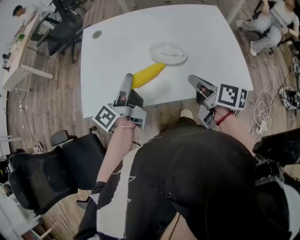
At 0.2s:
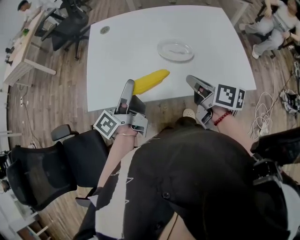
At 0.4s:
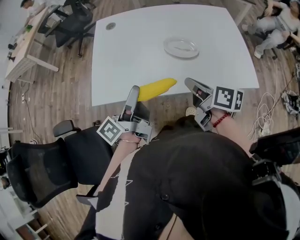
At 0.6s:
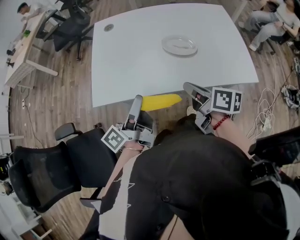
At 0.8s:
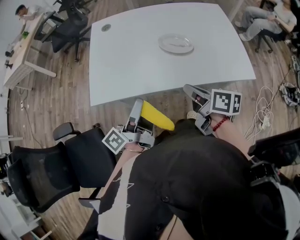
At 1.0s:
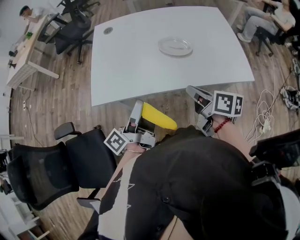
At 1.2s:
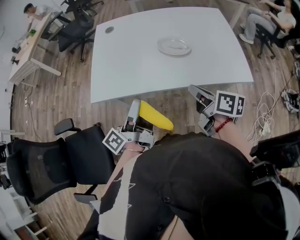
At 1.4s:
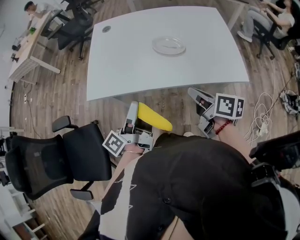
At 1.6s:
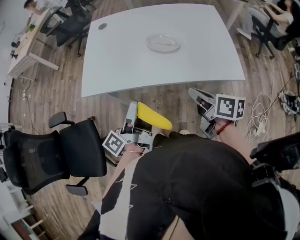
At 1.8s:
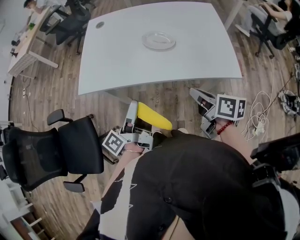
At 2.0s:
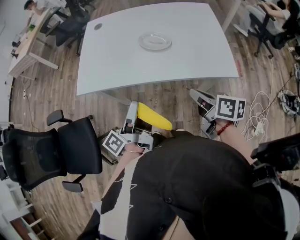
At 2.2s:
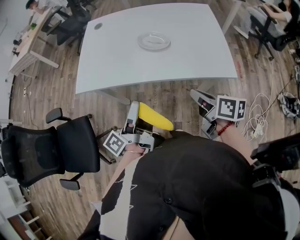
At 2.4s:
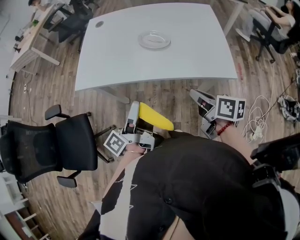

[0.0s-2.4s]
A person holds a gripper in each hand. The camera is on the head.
0.0s to 1.2s: The right gripper moves backward and to the left, about 10 cm. The left gripper goes some 15 cm backward.
1.2s to 2.4s: The two grippers go some 10 cm to the right and backward.

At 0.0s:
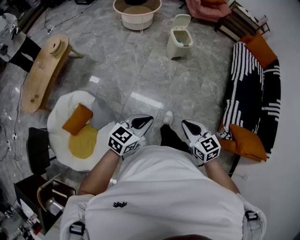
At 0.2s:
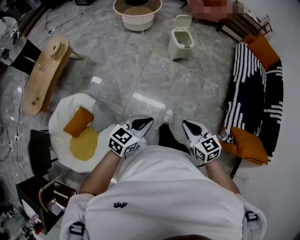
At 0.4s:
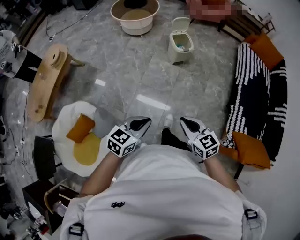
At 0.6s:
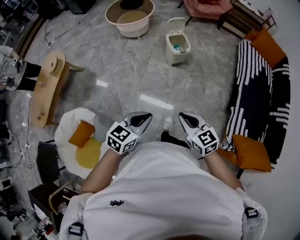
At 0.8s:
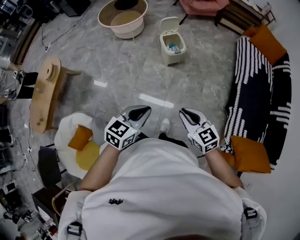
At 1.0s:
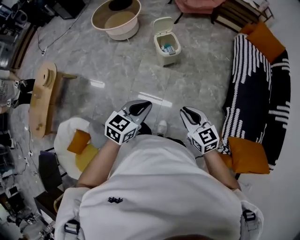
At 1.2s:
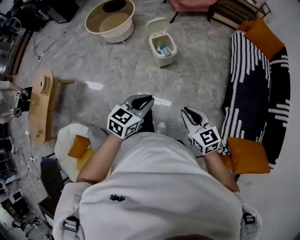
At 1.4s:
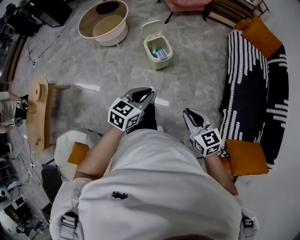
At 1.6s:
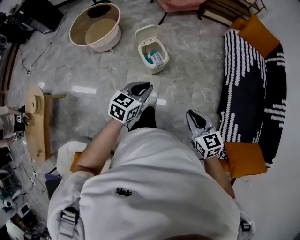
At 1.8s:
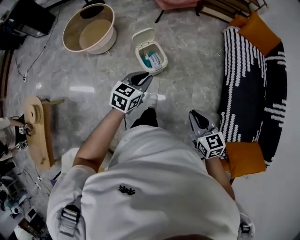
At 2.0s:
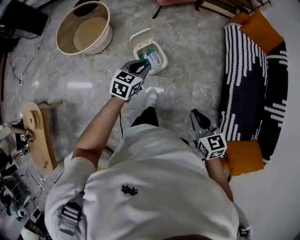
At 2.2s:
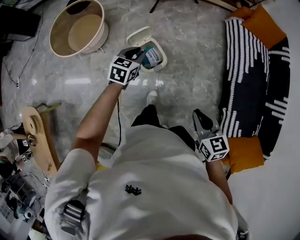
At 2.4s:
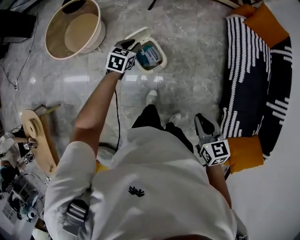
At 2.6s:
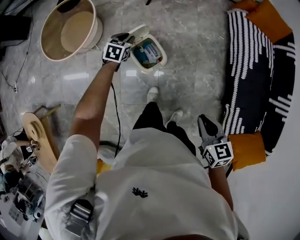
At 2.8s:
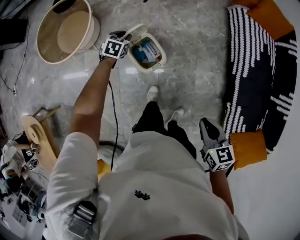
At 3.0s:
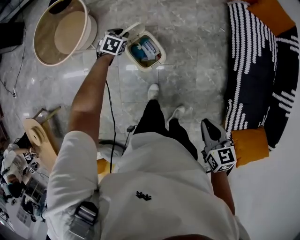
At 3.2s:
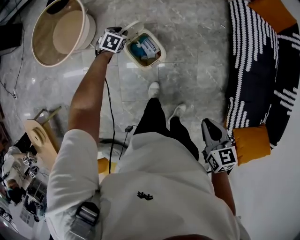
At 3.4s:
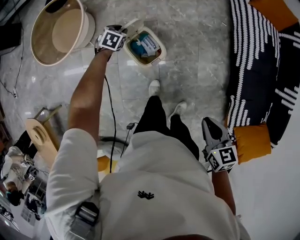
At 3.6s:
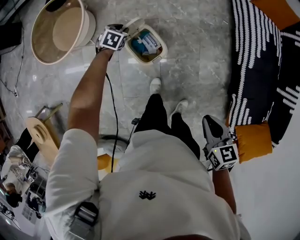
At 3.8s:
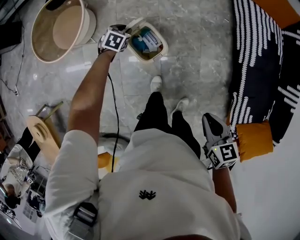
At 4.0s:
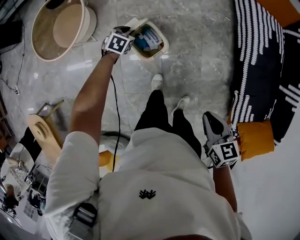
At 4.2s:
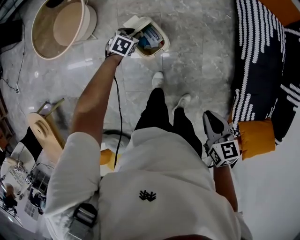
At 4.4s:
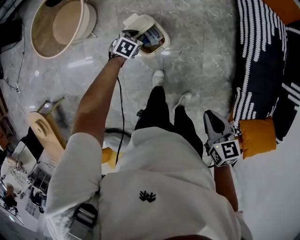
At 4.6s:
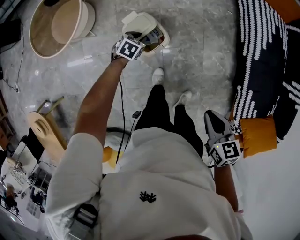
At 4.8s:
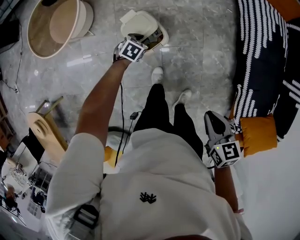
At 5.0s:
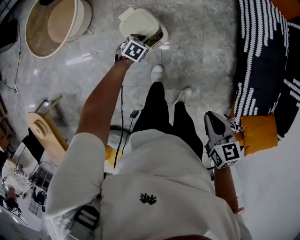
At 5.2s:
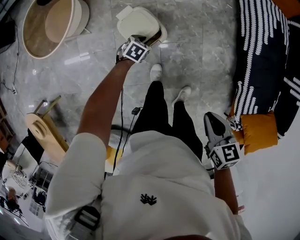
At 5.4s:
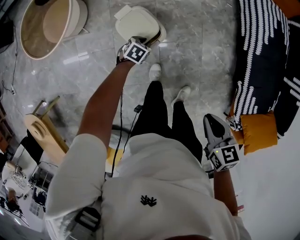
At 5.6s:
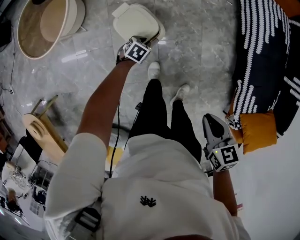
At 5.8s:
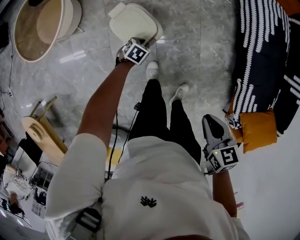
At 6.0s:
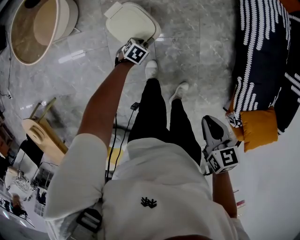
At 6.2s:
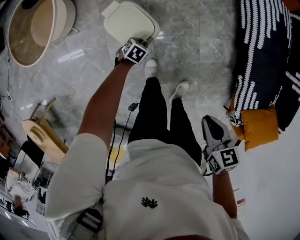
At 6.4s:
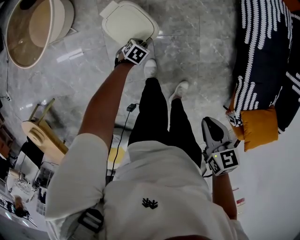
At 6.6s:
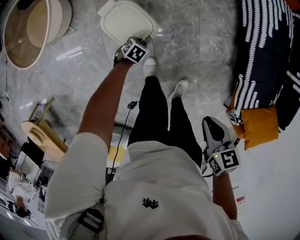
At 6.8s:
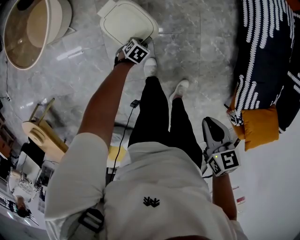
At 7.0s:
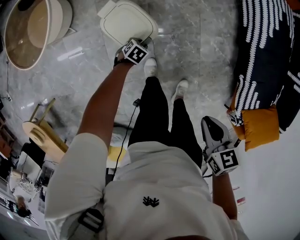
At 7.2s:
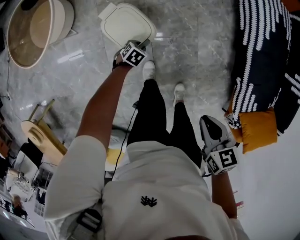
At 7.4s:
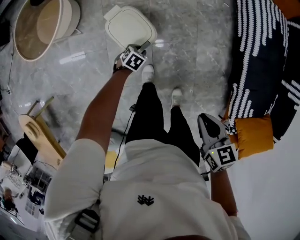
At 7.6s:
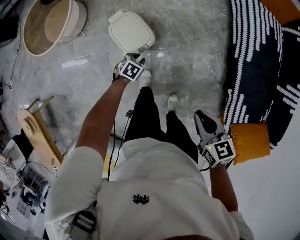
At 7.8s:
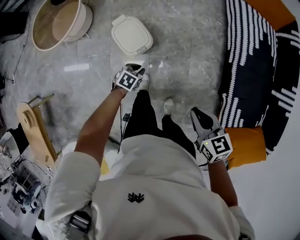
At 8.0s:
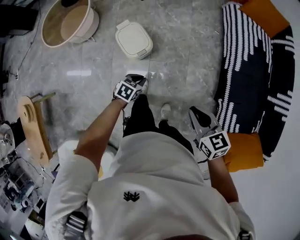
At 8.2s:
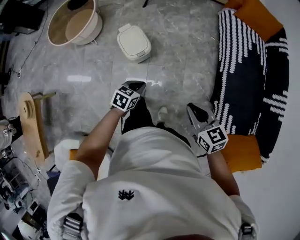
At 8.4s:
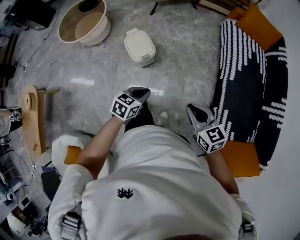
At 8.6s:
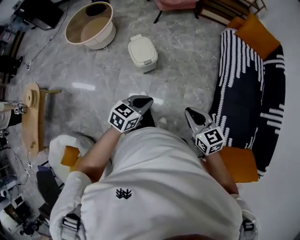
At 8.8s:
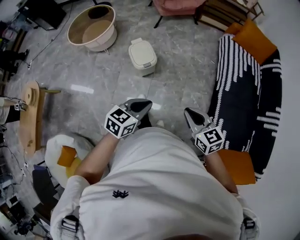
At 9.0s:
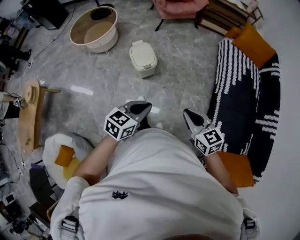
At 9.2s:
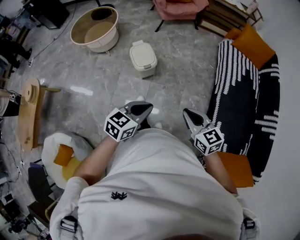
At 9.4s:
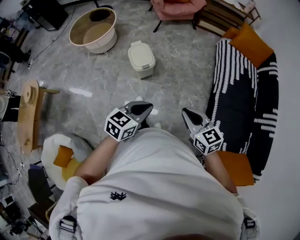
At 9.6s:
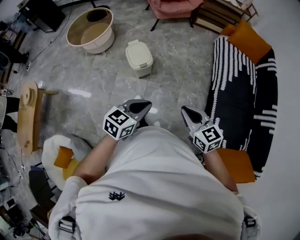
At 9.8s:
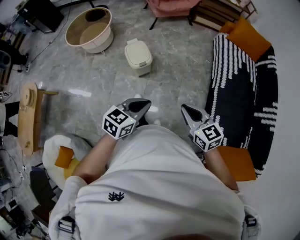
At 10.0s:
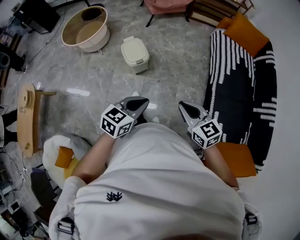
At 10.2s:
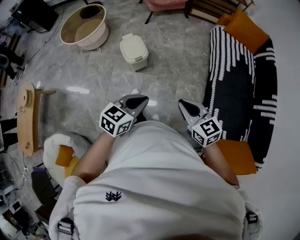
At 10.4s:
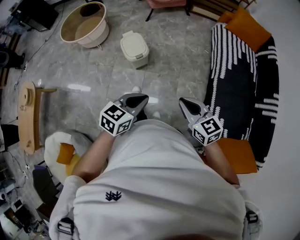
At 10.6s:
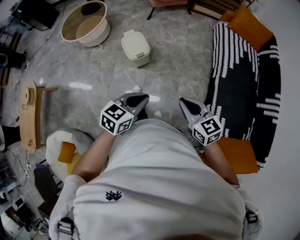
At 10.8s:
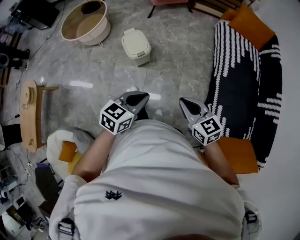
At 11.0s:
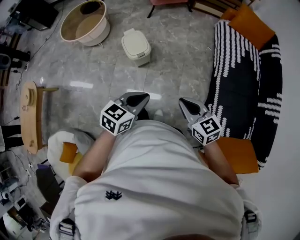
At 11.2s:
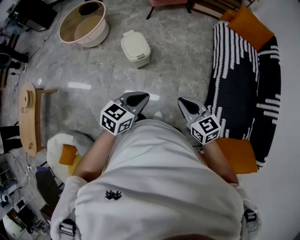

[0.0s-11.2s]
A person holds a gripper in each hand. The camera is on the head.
0.0s to 1.6s: The pair of grippers is taken forward, roughly 50 cm.
1.6s to 3.2s: The left gripper travels forward and downward by about 60 cm, and angles its fingers downward, by about 30 degrees, while the right gripper is displaced forward by roughly 20 cm, and changes its angle by some 30 degrees.
3.2s to 4.8s: The left gripper moves backward, to the right and downward, some 15 cm.
4.8s to 6.4s: The right gripper moves downward, roughly 5 cm, while the left gripper is displaced downward and to the right by roughly 15 cm.
6.4s to 8.0s: The left gripper is displaced upward, backward and to the right by about 30 cm, while the right gripper is displaced upward and to the right by approximately 15 cm, and rotates roughly 30 degrees.
8.0s to 9.6s: The right gripper heads backward and upward, covering roughly 15 cm, while the left gripper shifts approximately 35 cm upward and backward, and turns by approximately 30 degrees.
9.6s to 11.2s: The grippers move only a little.

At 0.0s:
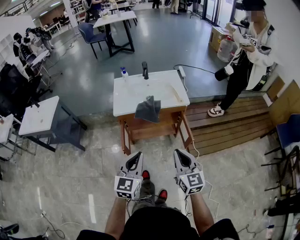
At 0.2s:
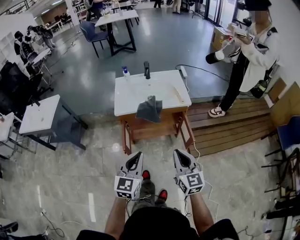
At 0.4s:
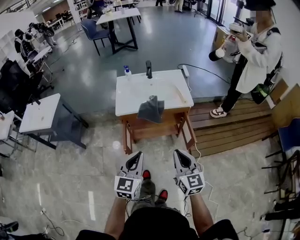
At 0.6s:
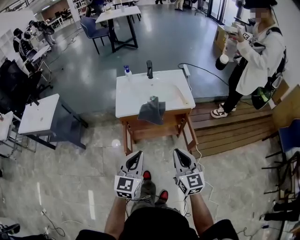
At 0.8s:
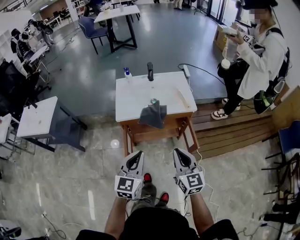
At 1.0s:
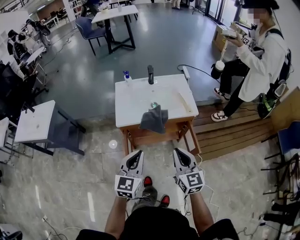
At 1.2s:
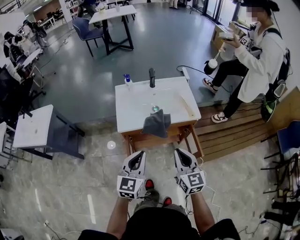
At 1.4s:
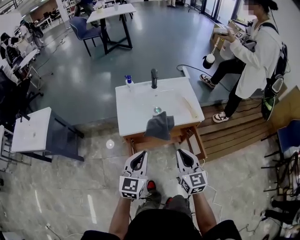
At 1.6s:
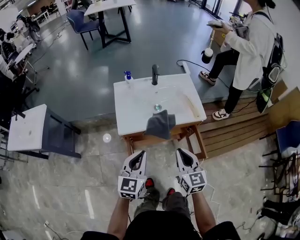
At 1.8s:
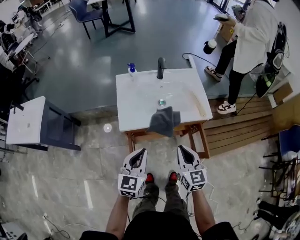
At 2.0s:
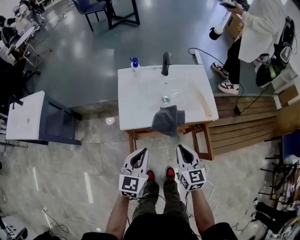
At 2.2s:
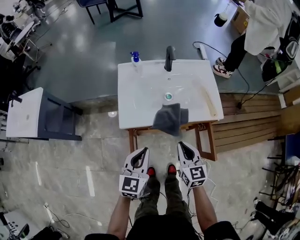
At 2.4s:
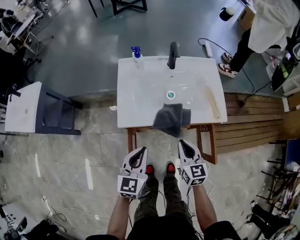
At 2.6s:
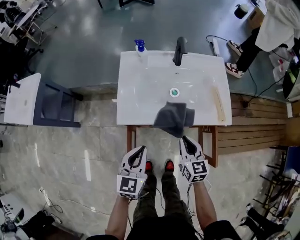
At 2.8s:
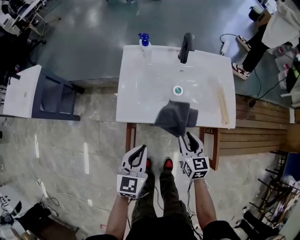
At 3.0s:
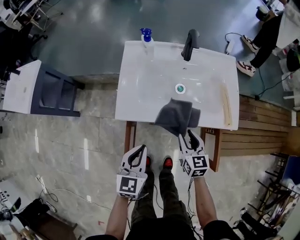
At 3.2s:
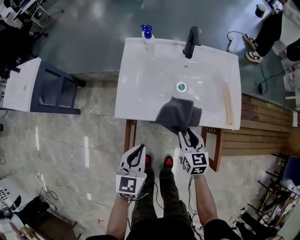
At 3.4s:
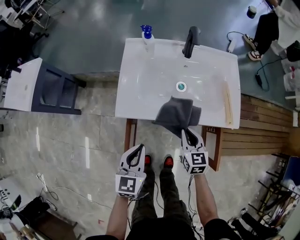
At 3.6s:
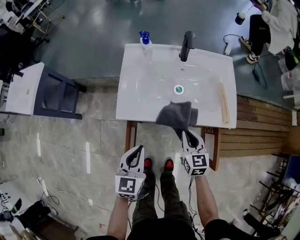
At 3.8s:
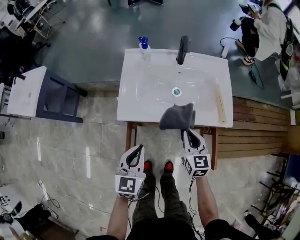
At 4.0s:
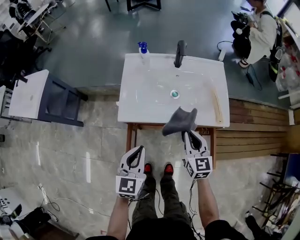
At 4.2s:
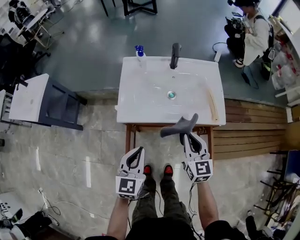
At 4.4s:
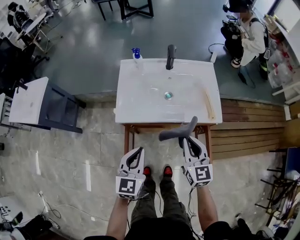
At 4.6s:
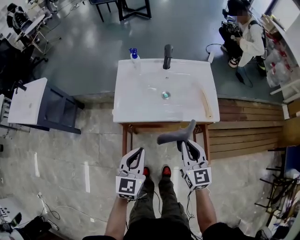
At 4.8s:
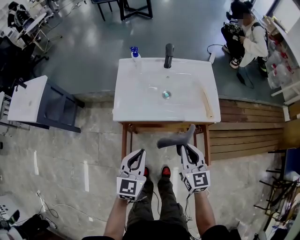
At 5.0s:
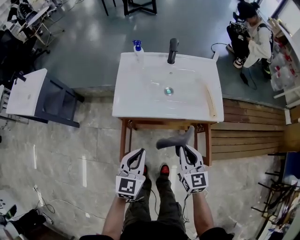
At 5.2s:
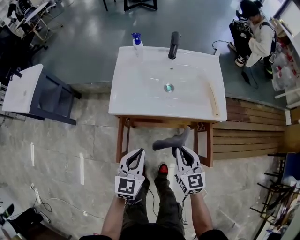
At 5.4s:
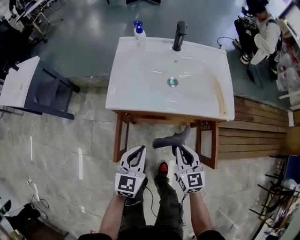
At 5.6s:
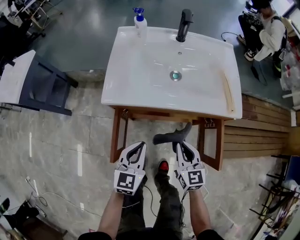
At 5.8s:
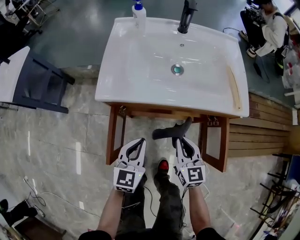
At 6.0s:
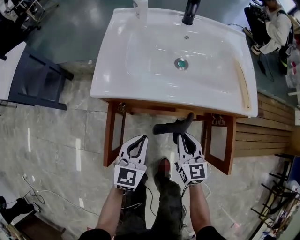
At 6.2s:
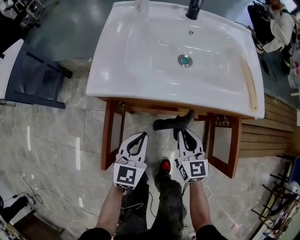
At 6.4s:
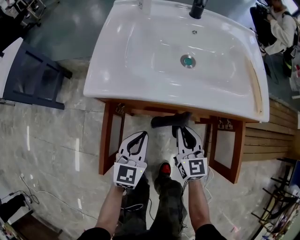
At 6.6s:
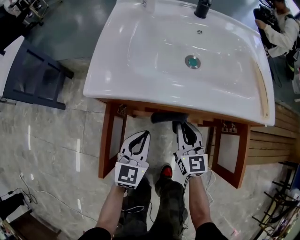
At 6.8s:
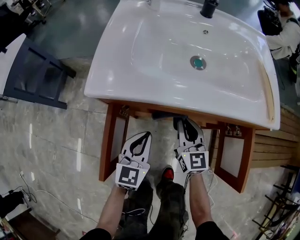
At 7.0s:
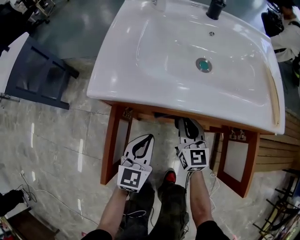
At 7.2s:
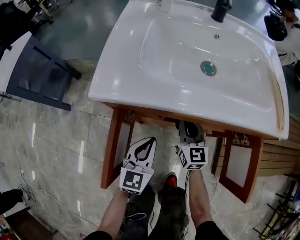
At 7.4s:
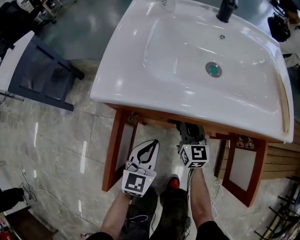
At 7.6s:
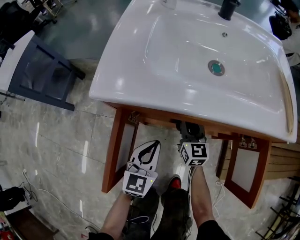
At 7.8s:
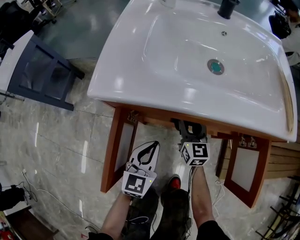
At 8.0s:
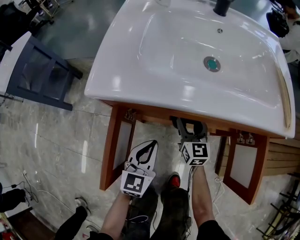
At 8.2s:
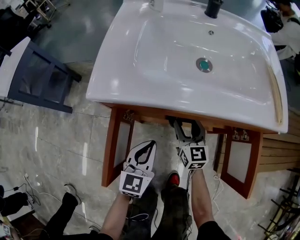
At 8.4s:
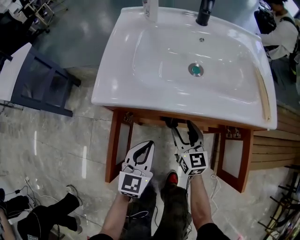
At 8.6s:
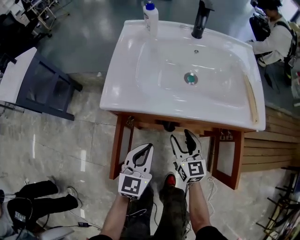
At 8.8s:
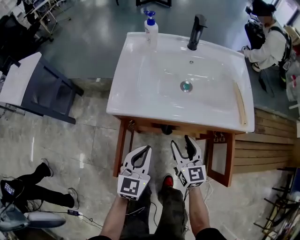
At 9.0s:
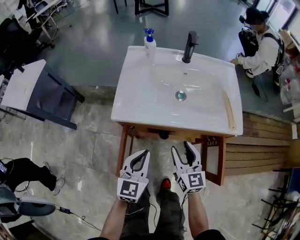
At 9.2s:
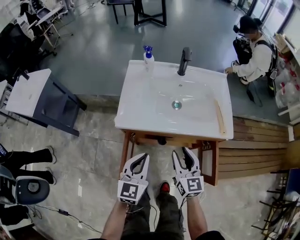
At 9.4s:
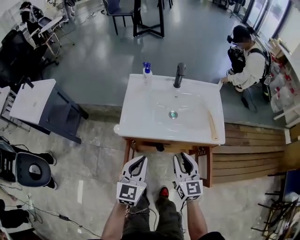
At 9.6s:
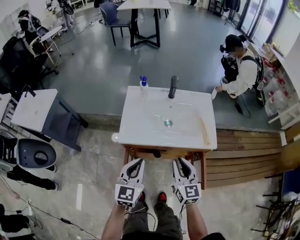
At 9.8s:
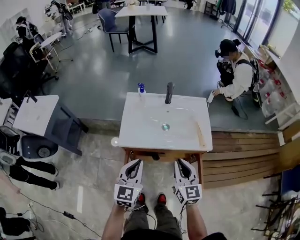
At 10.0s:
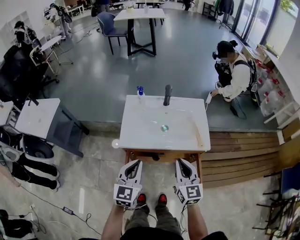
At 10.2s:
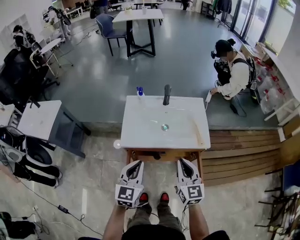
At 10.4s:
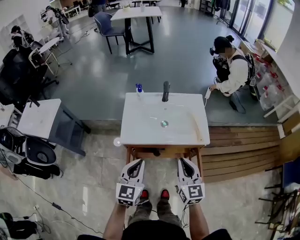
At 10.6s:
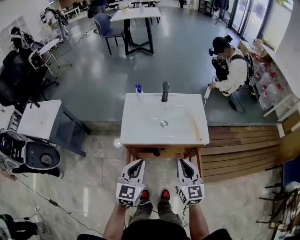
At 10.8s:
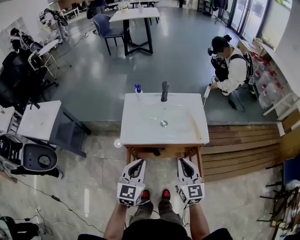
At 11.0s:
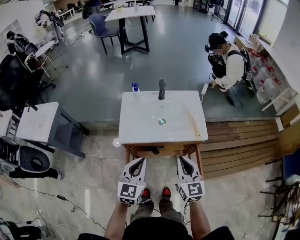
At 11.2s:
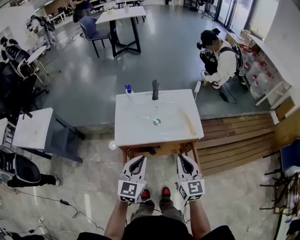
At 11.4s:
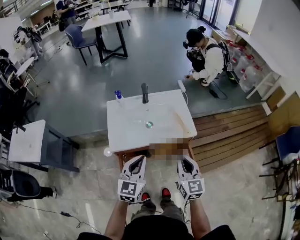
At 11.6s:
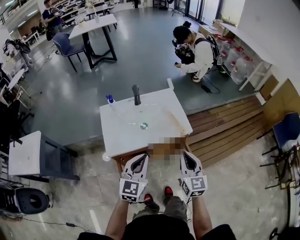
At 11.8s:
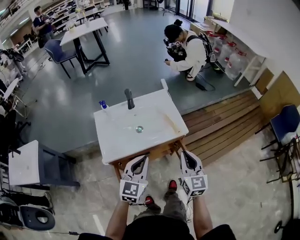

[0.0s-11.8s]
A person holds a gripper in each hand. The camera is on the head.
0.0s to 1.4s: Both grippers travel together forward and to the left, some 20 cm.
1.4s to 3.0s: Both grippers move downward and forward, roughly 25 cm. The right gripper changes its angle by roughly 20 degrees, and opens up; the left gripper turns by some 20 degrees.
3.0s to 4.4s: The left gripper shifts roughly 10 cm upward. The right gripper travels upward by roughly 15 cm, and closes up.
4.4s to 6.0s: The two grippers go about 25 cm downward.
6.0s to 7.4s: The left gripper travels downward by some 10 cm; the right gripper goes roughly 20 cm forward, downward and to the left.
7.4s to 8.8s: The right gripper shifts approximately 20 cm upward and backward, and opens up. Meanwhile the left gripper travels upward by roughly 15 cm.
8.8s to 10.4s: The two grippers go approximately 30 cm upward. The right gripper closes up.
10.4s to 11.8s: The grippers both shift to the right by roughly 10 cm. The right gripper turns by roughly 20 degrees. Meanwhile the left gripper changes its angle by about 20 degrees.
